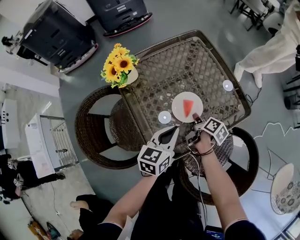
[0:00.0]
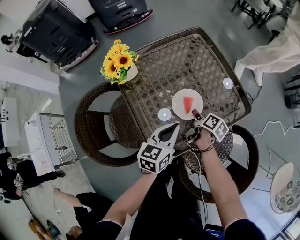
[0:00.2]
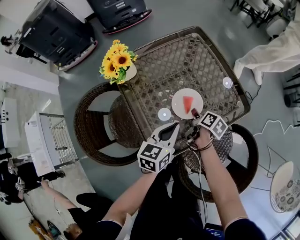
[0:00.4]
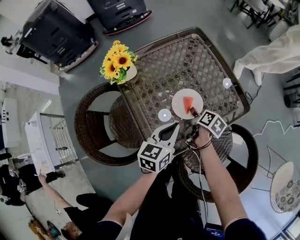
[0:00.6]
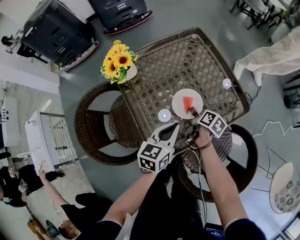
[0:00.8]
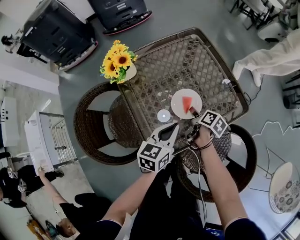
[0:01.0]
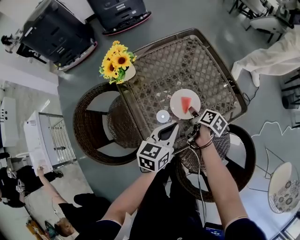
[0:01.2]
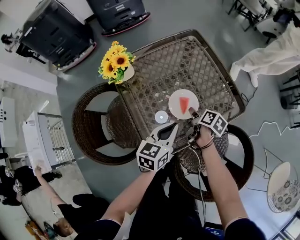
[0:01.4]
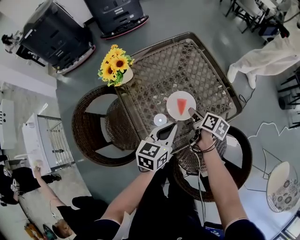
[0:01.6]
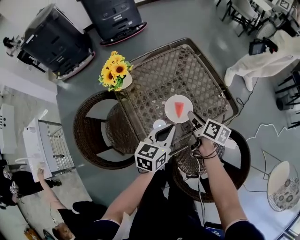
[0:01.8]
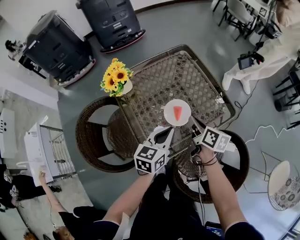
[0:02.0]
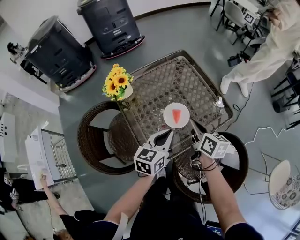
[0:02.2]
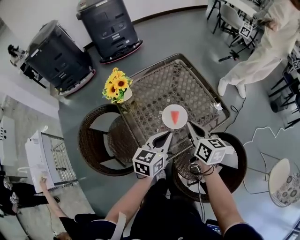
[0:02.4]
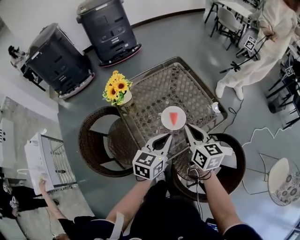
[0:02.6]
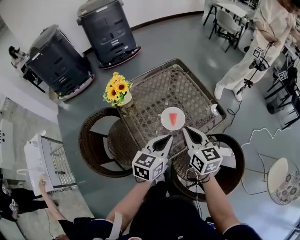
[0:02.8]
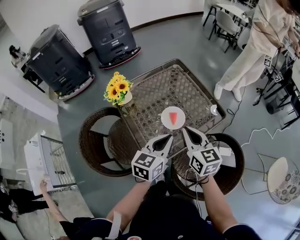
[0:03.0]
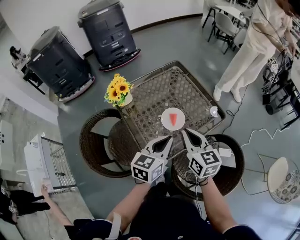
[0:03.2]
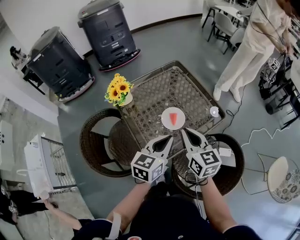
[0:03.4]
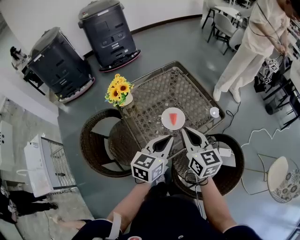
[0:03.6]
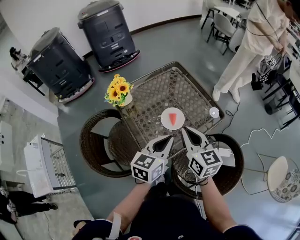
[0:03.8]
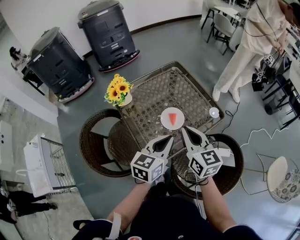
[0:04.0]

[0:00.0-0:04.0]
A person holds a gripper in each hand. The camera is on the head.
0:01.4 to 0:02.6: The left gripper is displaced upward by approximately 10 cm.
0:02.6 to 0:04.0: The left gripper changes place by some 5 cm.

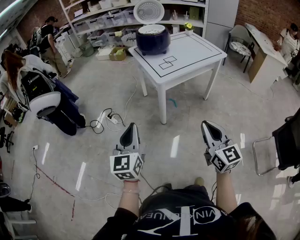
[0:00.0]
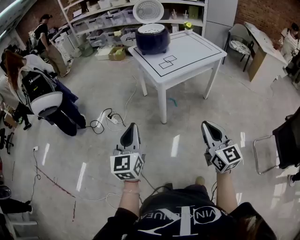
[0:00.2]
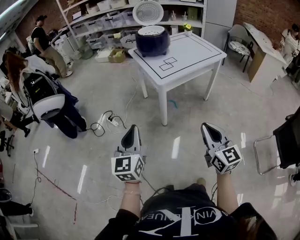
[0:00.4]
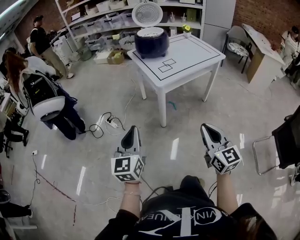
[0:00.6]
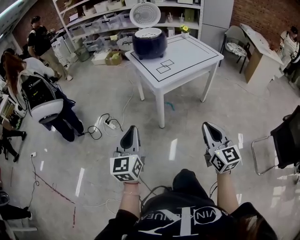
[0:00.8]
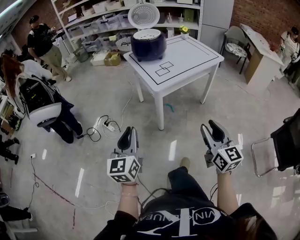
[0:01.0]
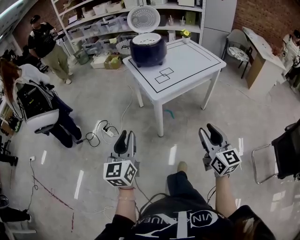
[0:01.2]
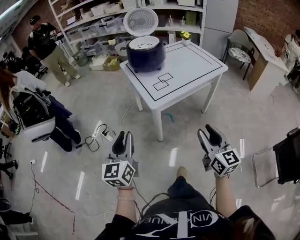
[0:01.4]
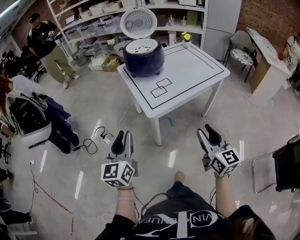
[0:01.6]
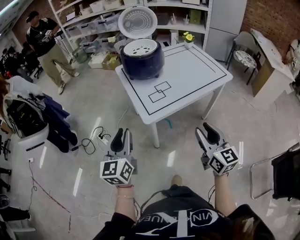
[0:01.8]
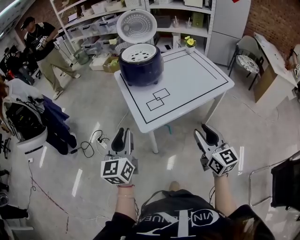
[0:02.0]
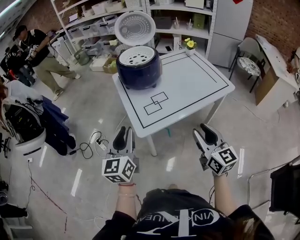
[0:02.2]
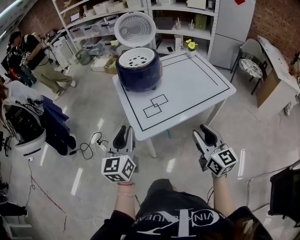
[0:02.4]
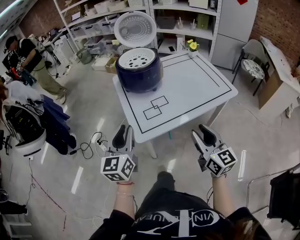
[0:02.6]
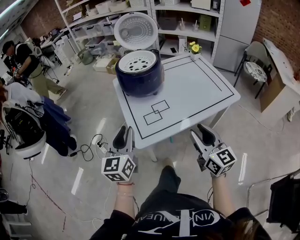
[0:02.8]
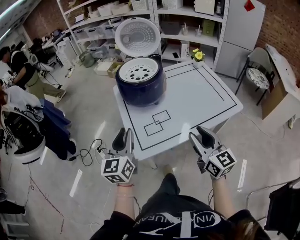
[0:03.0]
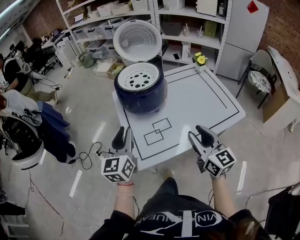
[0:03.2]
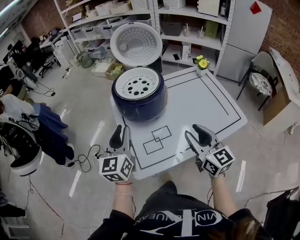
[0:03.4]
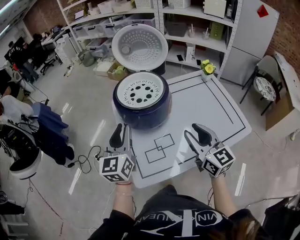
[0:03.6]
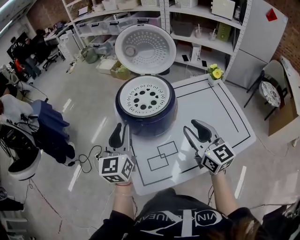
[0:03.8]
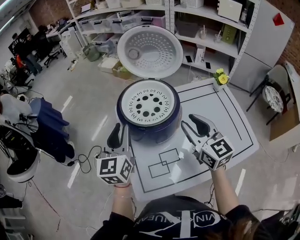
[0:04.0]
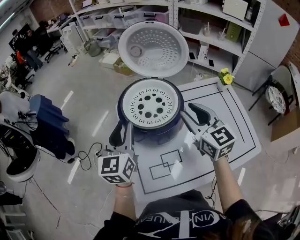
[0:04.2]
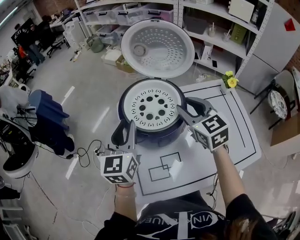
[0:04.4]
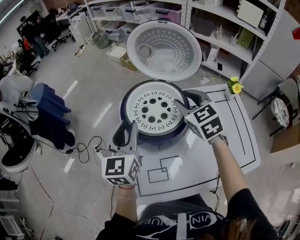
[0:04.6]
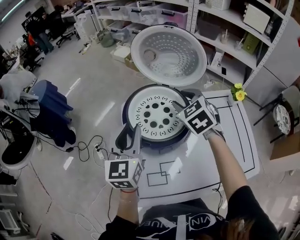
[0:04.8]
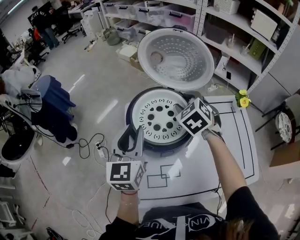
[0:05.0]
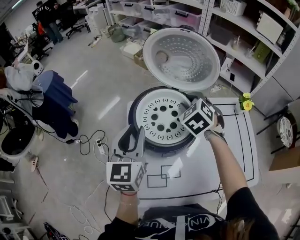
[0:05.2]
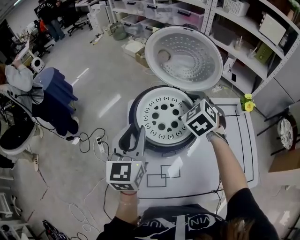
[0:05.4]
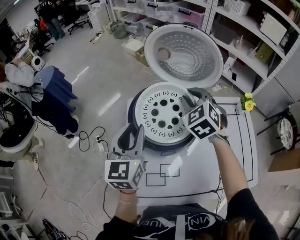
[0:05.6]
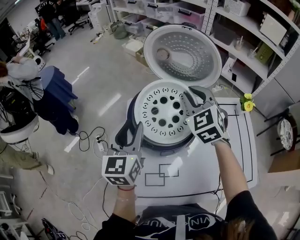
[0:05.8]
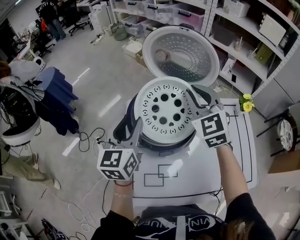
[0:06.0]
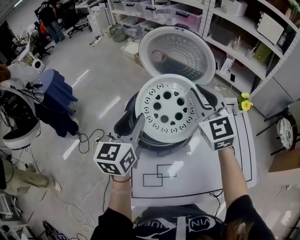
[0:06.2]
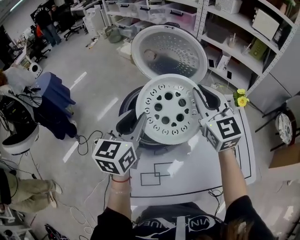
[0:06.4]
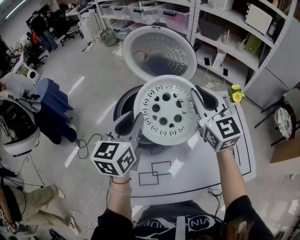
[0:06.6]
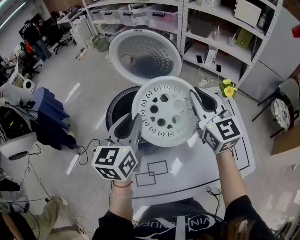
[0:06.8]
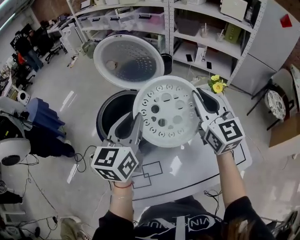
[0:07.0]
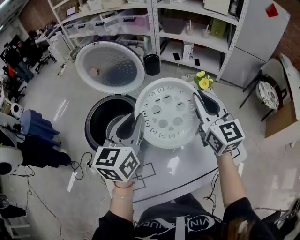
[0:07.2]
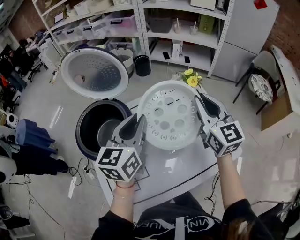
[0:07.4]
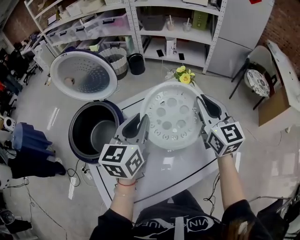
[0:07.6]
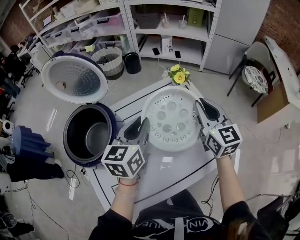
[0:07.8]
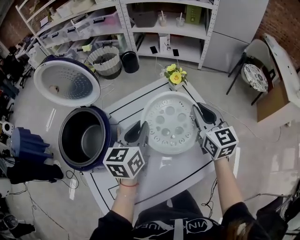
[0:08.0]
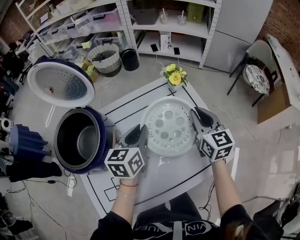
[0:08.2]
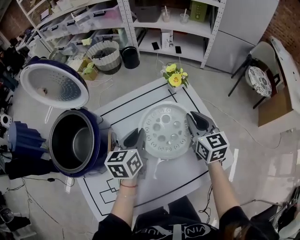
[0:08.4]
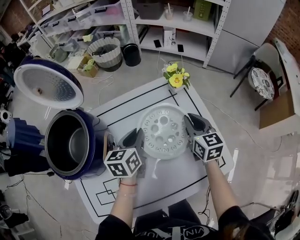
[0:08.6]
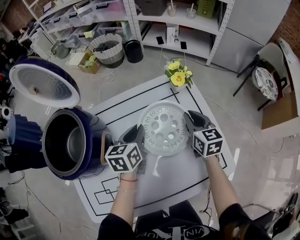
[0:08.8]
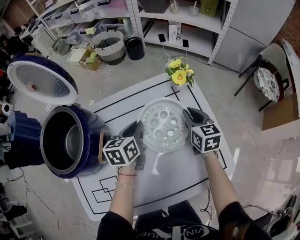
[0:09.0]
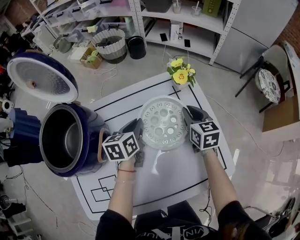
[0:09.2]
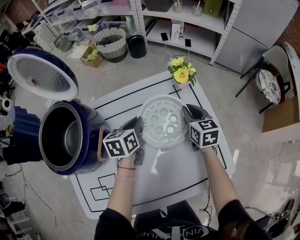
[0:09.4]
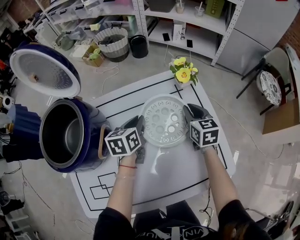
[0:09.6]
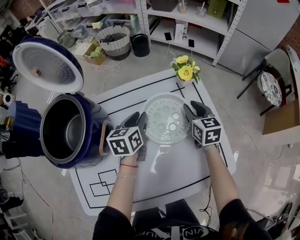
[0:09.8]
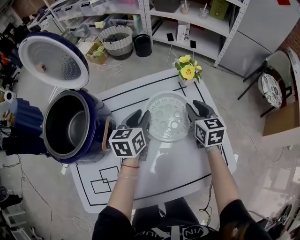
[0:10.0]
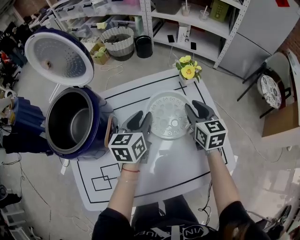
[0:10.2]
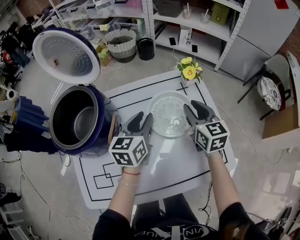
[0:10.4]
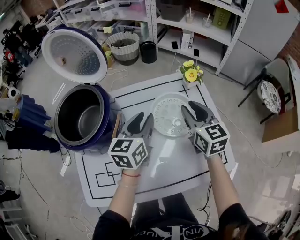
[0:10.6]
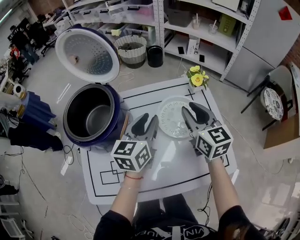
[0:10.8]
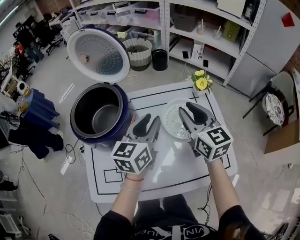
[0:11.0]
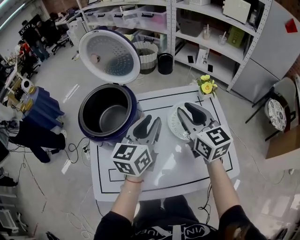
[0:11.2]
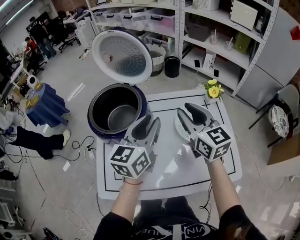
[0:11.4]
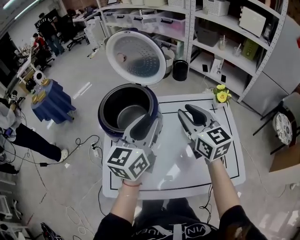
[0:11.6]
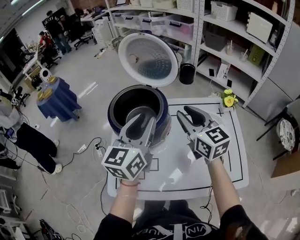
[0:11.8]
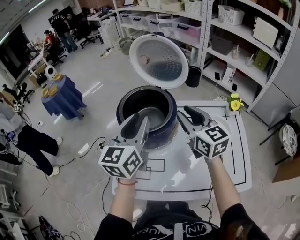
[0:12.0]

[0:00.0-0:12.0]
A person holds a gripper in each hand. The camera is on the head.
0:00.0 to 0:01.6: The grippers both shift forward by some 20 cm. The right gripper opens.
0:01.6 to 0:03.0: The right gripper travels forward by approximately 25 cm, while the left gripper shifts approximately 25 cm forward and to the right.
0:03.0 to 0:04.4: Both grippers move forward, approximately 35 cm. The right gripper changes its angle by approximately 30 degrees.
0:04.4 to 0:06.0: The right gripper shifts about 10 cm forward, and rotates roughly 20 degrees.
0:06.0 to 0:07.6: The right gripper changes place by roughly 35 cm, and changes its angle by some 40 degrees; the left gripper changes place by some 30 cm, changes its angle by some 30 degrees, and closes.
0:07.6 to 0:09.0: The two grippers go about 25 cm downward and forward. The left gripper swivels some 30 degrees, while the right gripper swivels about 30 degrees.
0:09.0 to 0:10.4: The two grippers go roughly 5 cm upward.
0:10.4 to 0:12.0: The two grippers go about 30 cm to the left and upward. The right gripper turns by approximately 30 degrees, while the left gripper turns by approximately 30 degrees.

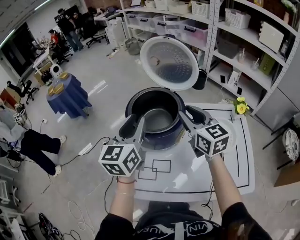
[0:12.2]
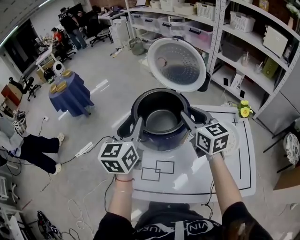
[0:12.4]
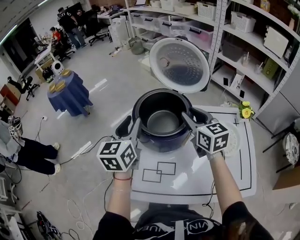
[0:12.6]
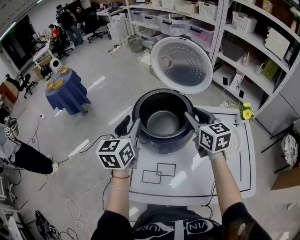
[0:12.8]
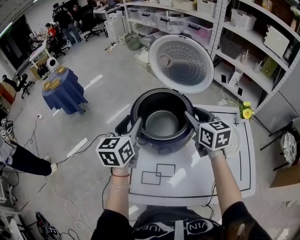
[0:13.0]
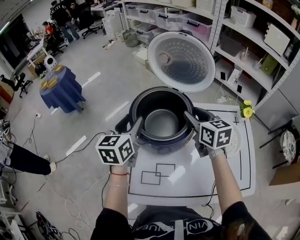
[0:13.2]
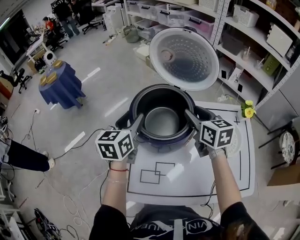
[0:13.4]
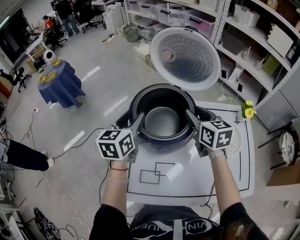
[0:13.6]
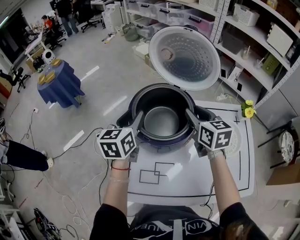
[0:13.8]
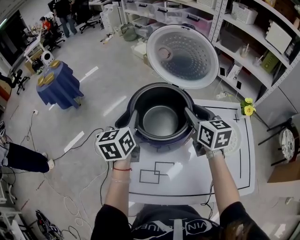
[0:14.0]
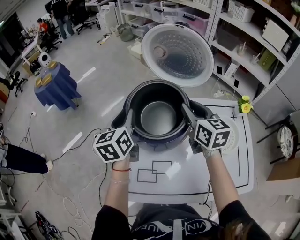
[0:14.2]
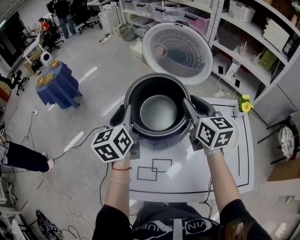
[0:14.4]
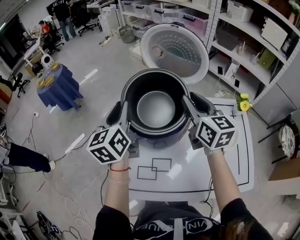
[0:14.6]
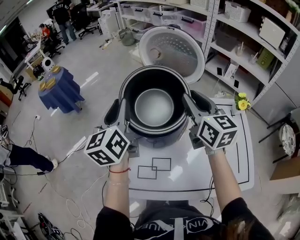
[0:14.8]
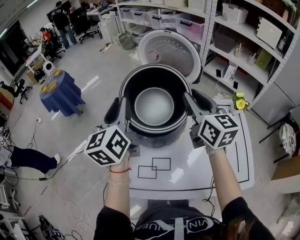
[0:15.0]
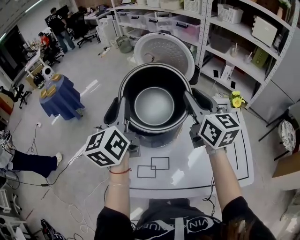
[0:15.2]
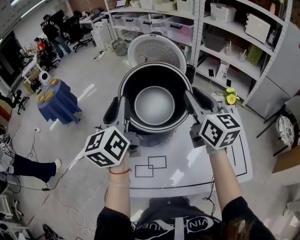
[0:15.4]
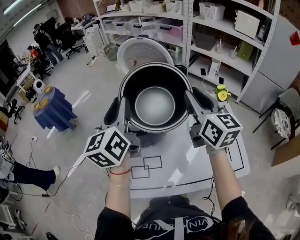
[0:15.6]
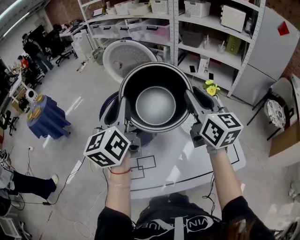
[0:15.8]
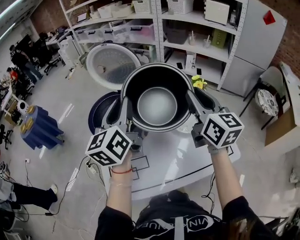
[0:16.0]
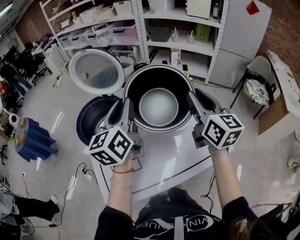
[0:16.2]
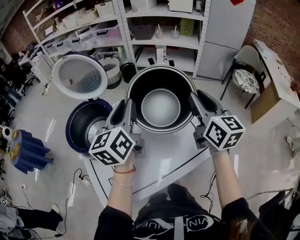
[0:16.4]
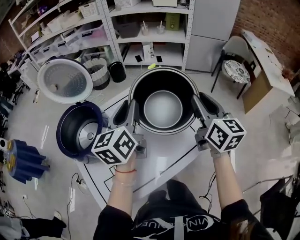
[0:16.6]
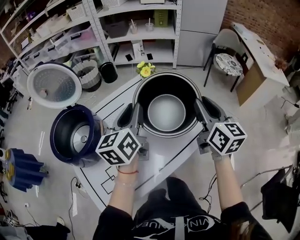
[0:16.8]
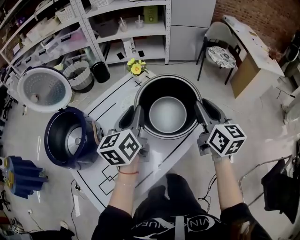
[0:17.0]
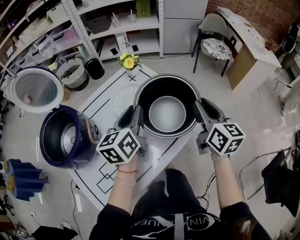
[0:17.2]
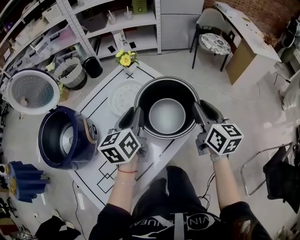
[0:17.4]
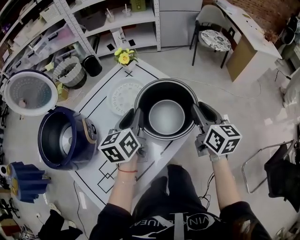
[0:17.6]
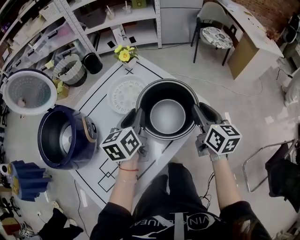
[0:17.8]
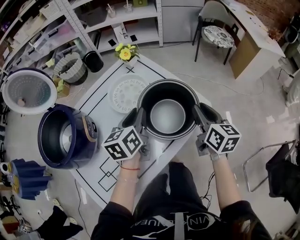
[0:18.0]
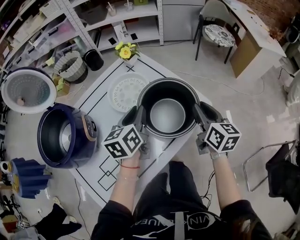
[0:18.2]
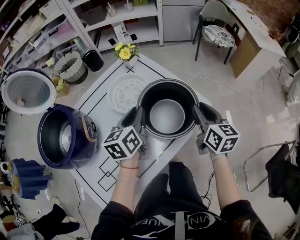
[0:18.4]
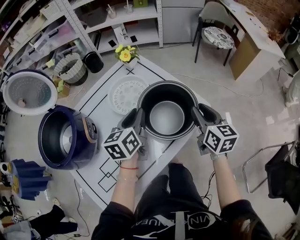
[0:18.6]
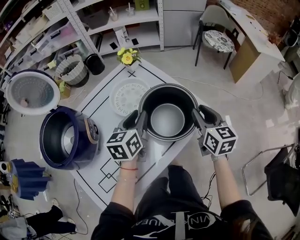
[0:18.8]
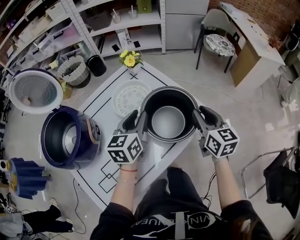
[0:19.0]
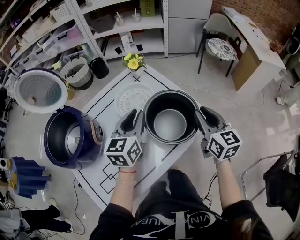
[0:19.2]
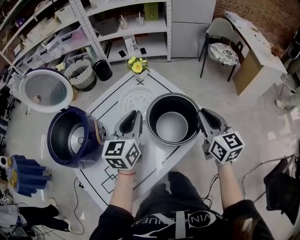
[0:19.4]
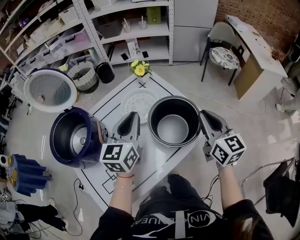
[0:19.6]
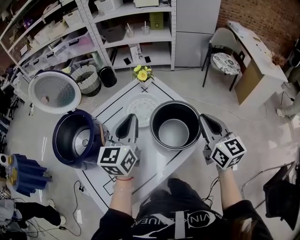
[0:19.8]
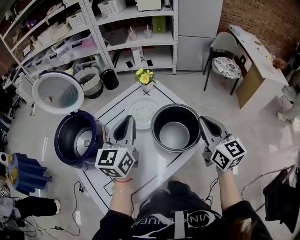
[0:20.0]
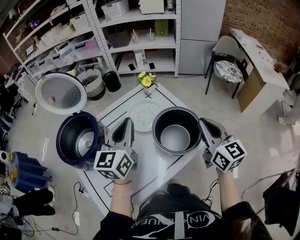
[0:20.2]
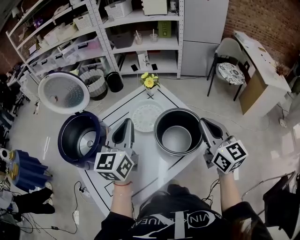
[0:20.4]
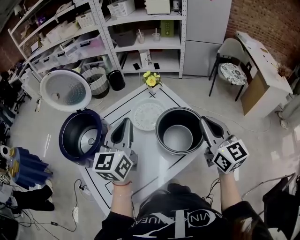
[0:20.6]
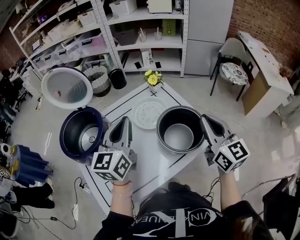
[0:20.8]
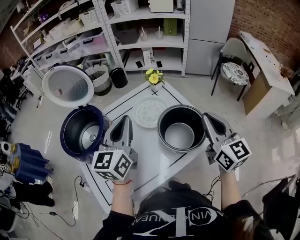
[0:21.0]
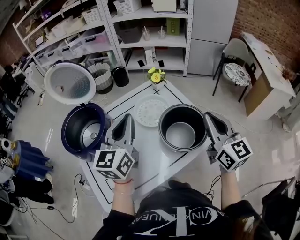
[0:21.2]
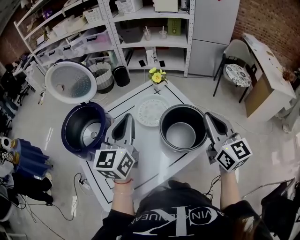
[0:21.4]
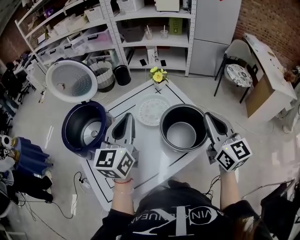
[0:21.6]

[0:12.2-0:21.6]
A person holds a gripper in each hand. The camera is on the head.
0:12.2 to 0:13.8: The left gripper heads forward, downward and to the left, covering some 15 cm; the right gripper travels downward and forward by roughly 10 cm.
0:13.8 to 0:15.4: Both grippers travel together upward and backward, about 15 cm. The left gripper rotates about 20 degrees. Meanwhile the right gripper changes its angle by roughly 30 degrees.
0:15.4 to 0:17.0: The right gripper ends up about 40 cm from where it was, and changes its angle by roughly 50 degrees. The left gripper ends up some 40 cm from where it was, and swivels about 50 degrees.
0:17.0 to 0:18.4: The grippers both shift downward by roughly 10 cm.
0:18.4 to 0:20.0: Both grippers move upward, about 15 cm. The right gripper rotates roughly 20 degrees, and closes; the left gripper swivels approximately 30 degrees.
0:20.0 to 0:21.6: The left gripper shifts by some 5 cm.
